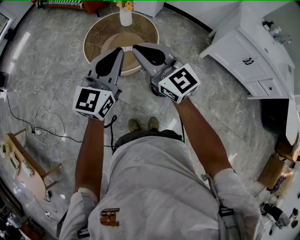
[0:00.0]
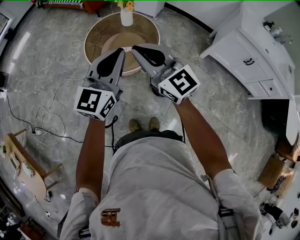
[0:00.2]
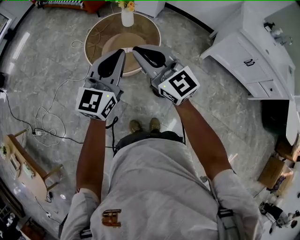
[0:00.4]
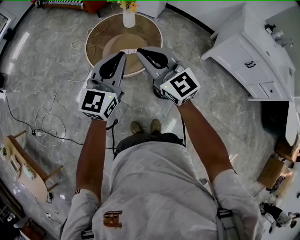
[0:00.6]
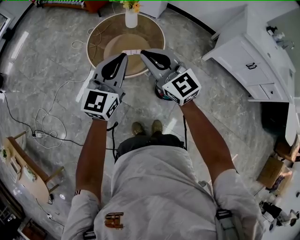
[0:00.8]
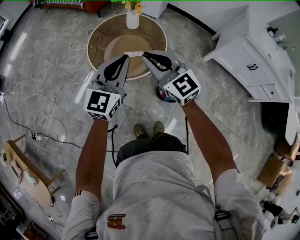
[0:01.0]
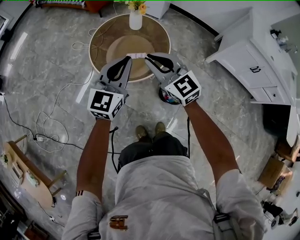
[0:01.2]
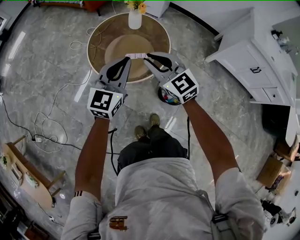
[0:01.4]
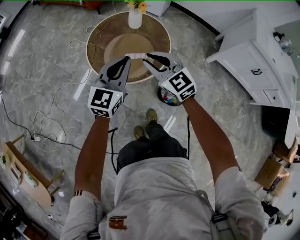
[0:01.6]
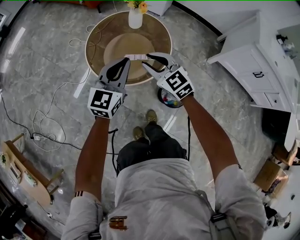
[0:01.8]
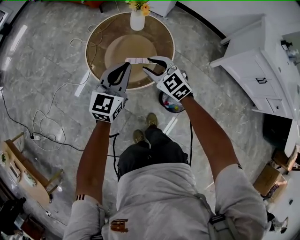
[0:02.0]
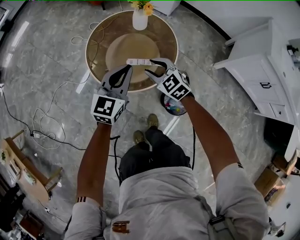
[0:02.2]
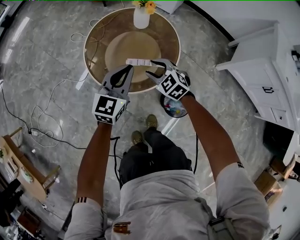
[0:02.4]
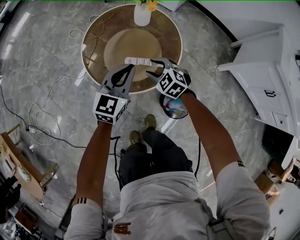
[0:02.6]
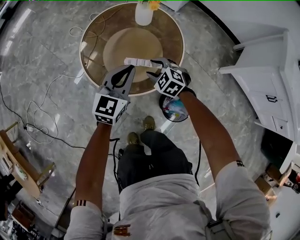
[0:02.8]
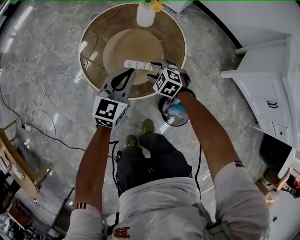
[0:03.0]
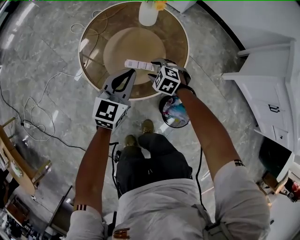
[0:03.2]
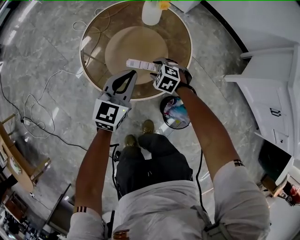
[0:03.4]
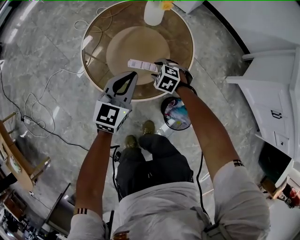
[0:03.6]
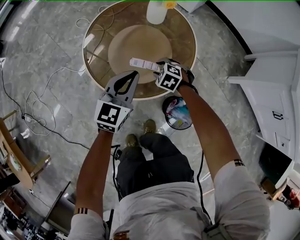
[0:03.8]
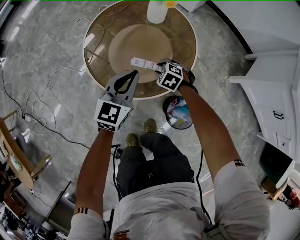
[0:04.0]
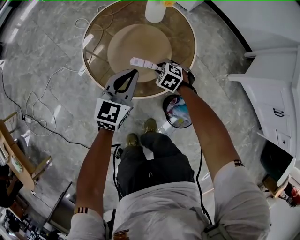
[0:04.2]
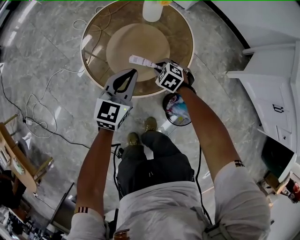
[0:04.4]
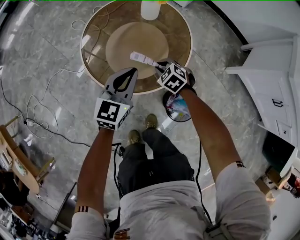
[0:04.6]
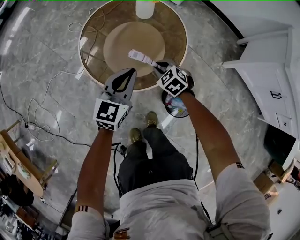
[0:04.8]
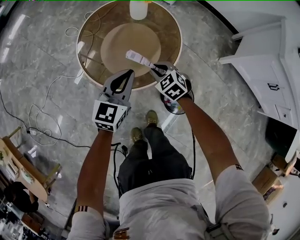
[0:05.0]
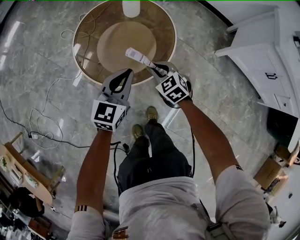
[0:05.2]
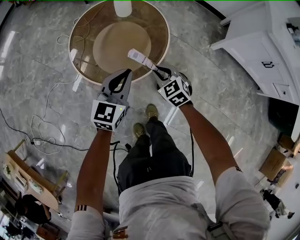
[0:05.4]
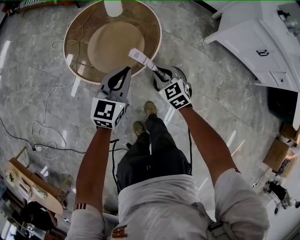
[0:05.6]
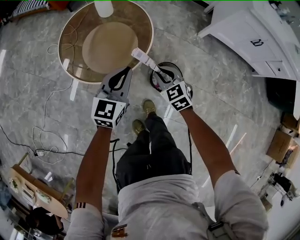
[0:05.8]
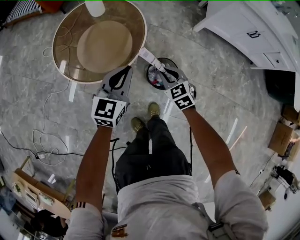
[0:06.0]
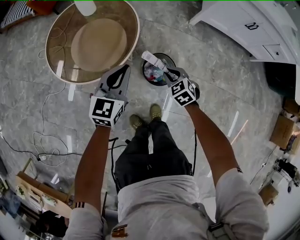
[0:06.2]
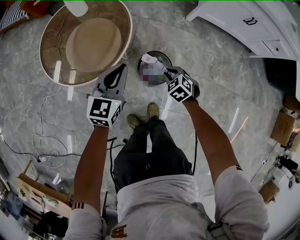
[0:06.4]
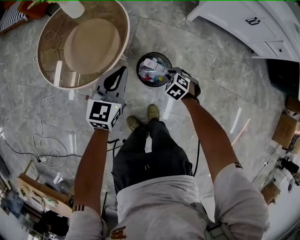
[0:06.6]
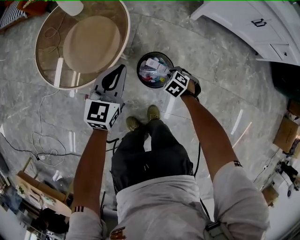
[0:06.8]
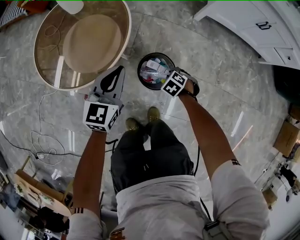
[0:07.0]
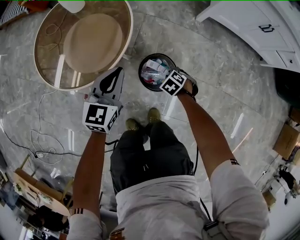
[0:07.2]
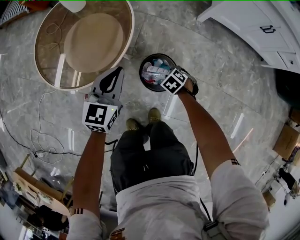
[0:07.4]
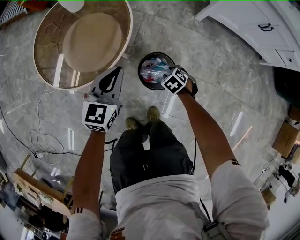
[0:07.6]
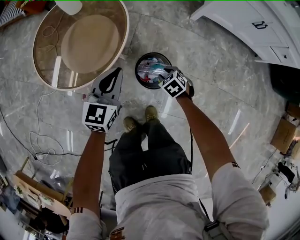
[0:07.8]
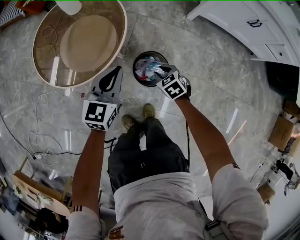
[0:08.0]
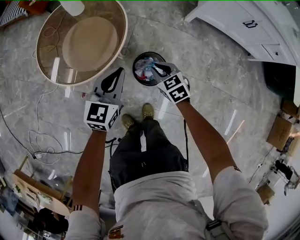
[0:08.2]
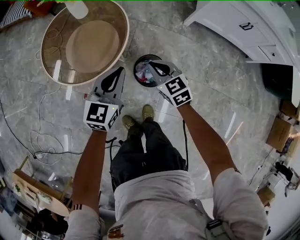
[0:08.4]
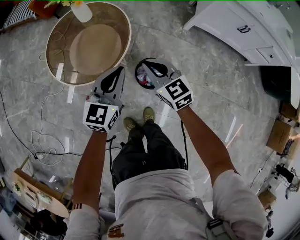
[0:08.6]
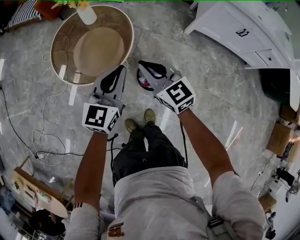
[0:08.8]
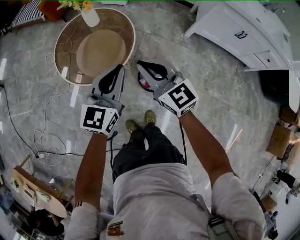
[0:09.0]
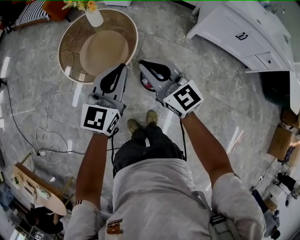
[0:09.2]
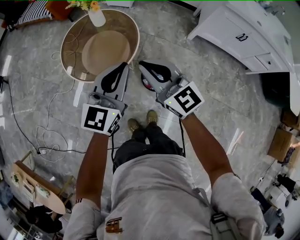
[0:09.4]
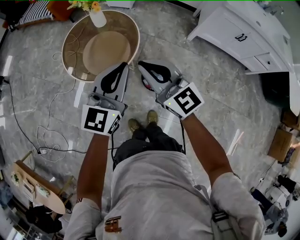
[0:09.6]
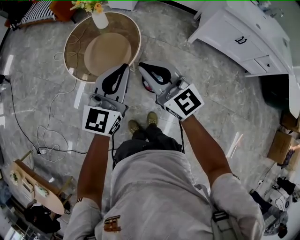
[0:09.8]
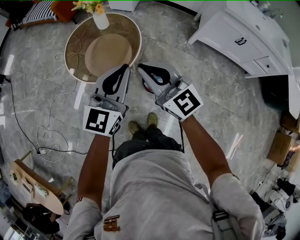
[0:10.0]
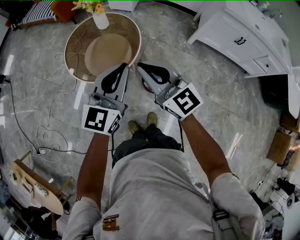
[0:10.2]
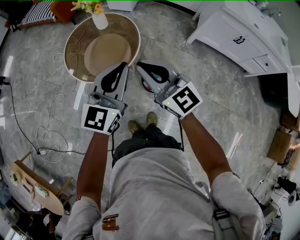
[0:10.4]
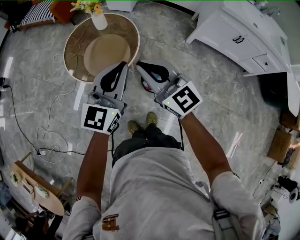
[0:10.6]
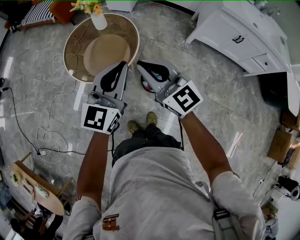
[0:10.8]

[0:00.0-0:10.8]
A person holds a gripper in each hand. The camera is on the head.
0:00.0 to 0:01.6: The two grippers go roughly 20 cm downward and forward. The right gripper changes its angle by about 20 degrees.
0:01.6 to 0:03.0: The right gripper moves downward, approximately 35 cm, tilts its fingers approximately 40 degrees downward, and opens its fingers, while the left gripper goes about 25 cm downward and forward.
0:03.0 to 0:04.6: The right gripper closes its fingers.
0:04.6 to 0:06.2: The right gripper moves some 30 cm, and swivels about 40 degrees; the left gripper ends up approximately 20 cm from where it was, and turns by about 20 degrees.
0:06.2 to 0:07.8: The right gripper goes roughly 15 cm downward; the left gripper heads downward, covering roughly 10 cm.
0:07.8 to 0:09.2: The right gripper is displaced upward by some 50 cm, tilts its fingers roughly 60 degrees upward, and closes up; the left gripper is displaced upward by about 30 cm.
0:09.2 to 0:10.8: Both grippers travel together upward, approximately 5 cm.

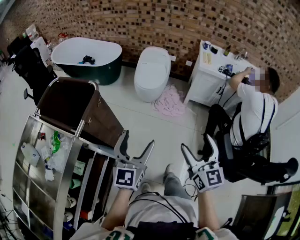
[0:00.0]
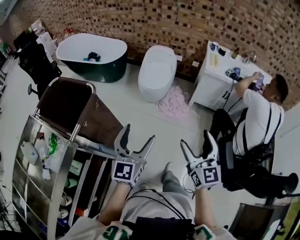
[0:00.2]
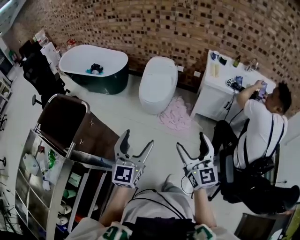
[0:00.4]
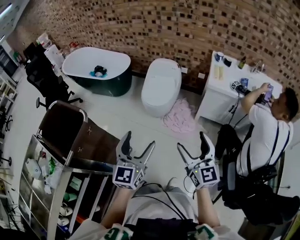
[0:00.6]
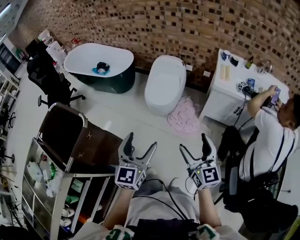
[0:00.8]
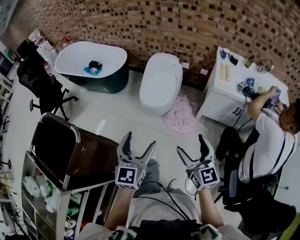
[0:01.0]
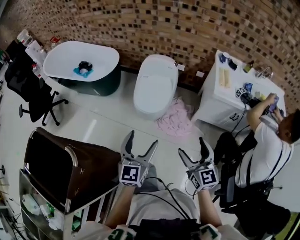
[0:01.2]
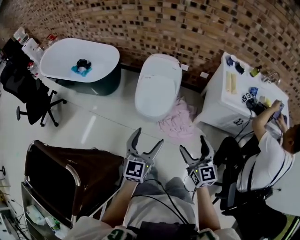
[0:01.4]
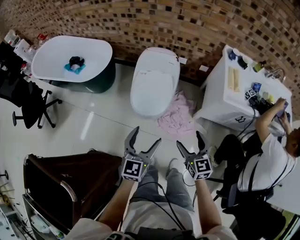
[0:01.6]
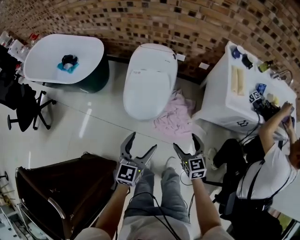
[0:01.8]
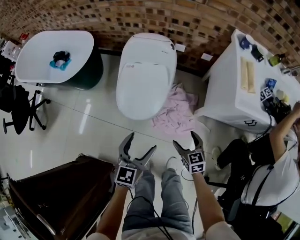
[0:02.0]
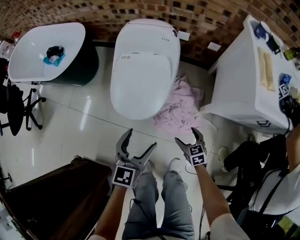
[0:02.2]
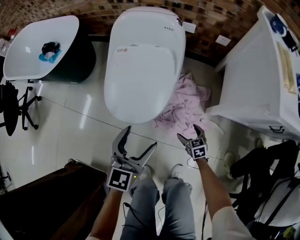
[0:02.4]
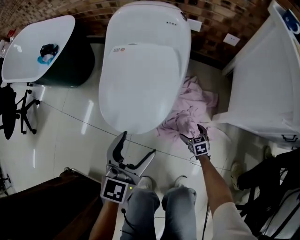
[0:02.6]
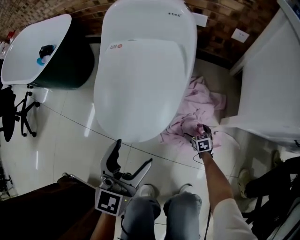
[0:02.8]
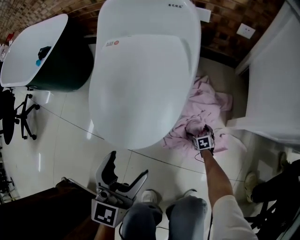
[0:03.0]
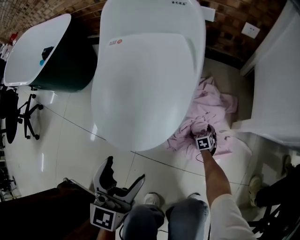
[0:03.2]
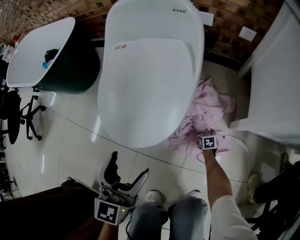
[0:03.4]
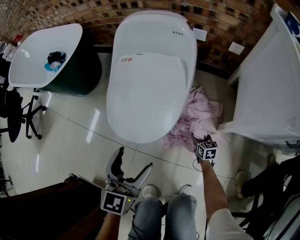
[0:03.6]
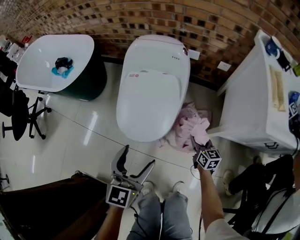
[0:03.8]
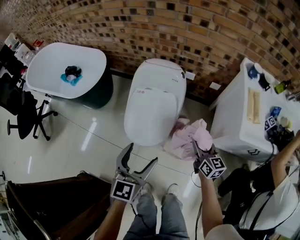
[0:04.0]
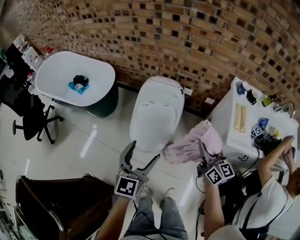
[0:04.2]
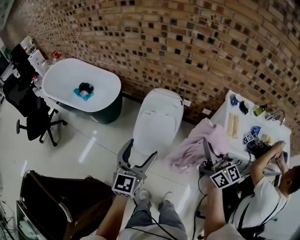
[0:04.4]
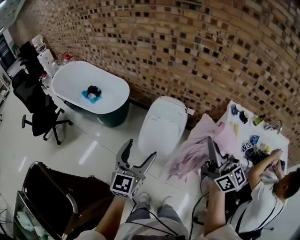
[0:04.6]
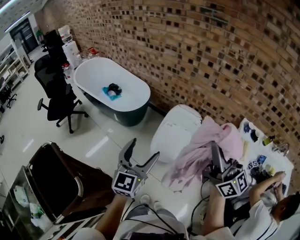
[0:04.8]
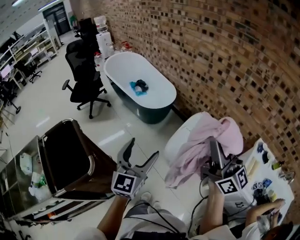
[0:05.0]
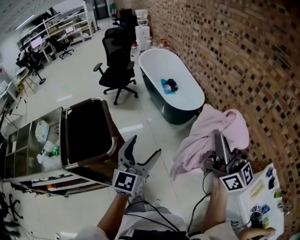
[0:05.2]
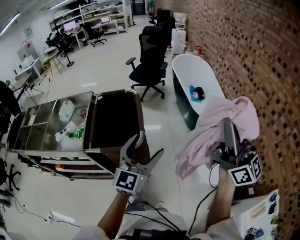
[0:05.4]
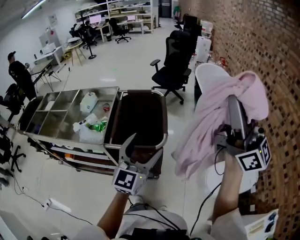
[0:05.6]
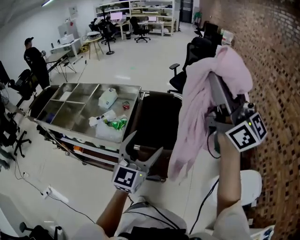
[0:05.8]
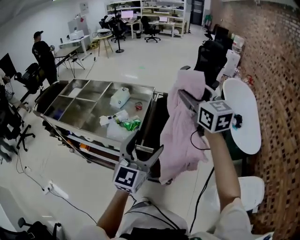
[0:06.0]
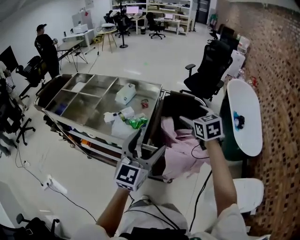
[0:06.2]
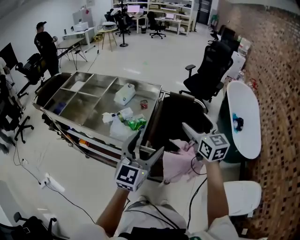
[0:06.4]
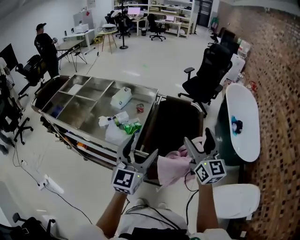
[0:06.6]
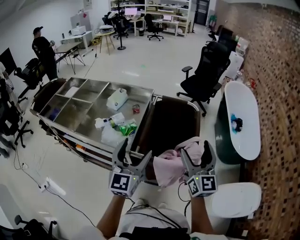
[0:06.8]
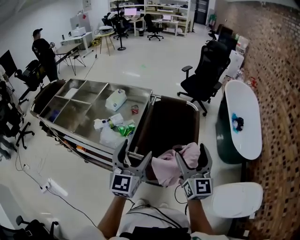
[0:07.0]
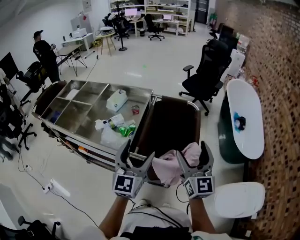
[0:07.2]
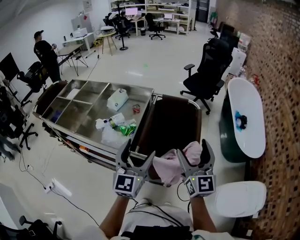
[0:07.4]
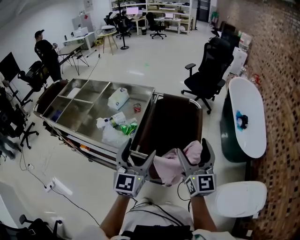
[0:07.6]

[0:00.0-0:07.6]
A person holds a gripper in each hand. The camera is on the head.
0:00.0 to 0:01.6: The two grippers travel together, forward, some 60 cm. The right gripper moves downward, approximately 25 cm.
0:01.6 to 0:03.0: The right gripper heads downward, covering some 90 cm, and tilts its fingers approximately 40 degrees downward, while the left gripper travels downward by approximately 50 cm.
0:03.0 to 0:04.6: The right gripper goes approximately 1.5 m upward, angles its fingers upward, by some 80 degrees, and closes up. Meanwhile the left gripper travels upward by about 60 cm.
0:04.6 to 0:06.0: Both grippers are carried some 70 cm. The left gripper turns by approximately 80 degrees, while the right gripper rotates some 80 degrees.
0:06.0 to 0:07.6: The left gripper travels downward by roughly 5 cm; the right gripper travels downward and backward by some 20 cm.

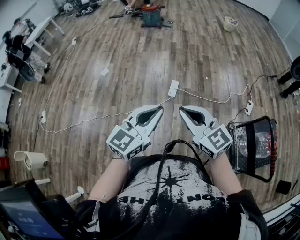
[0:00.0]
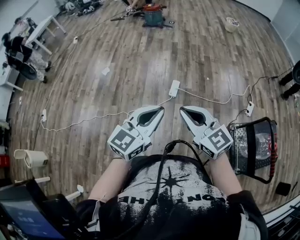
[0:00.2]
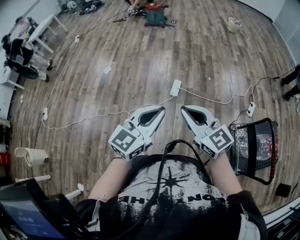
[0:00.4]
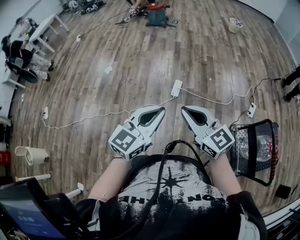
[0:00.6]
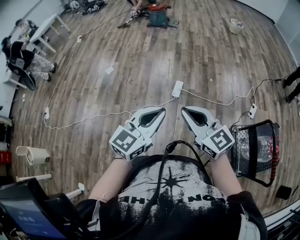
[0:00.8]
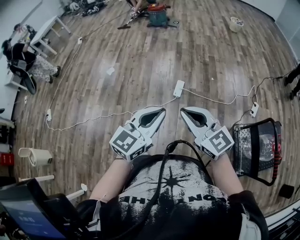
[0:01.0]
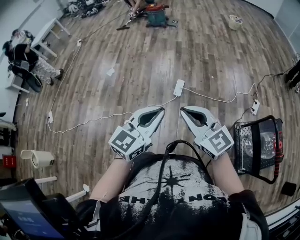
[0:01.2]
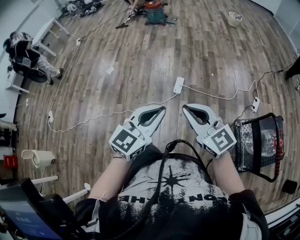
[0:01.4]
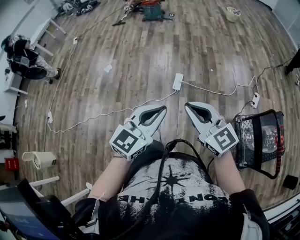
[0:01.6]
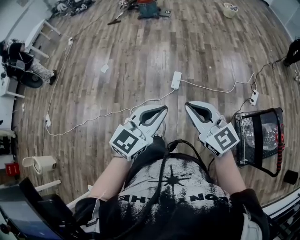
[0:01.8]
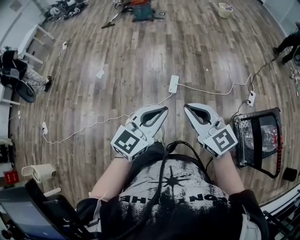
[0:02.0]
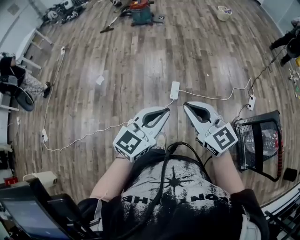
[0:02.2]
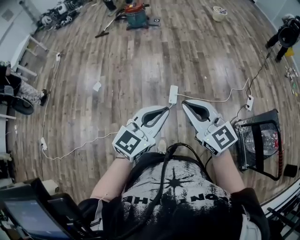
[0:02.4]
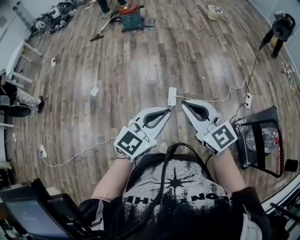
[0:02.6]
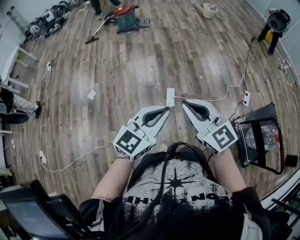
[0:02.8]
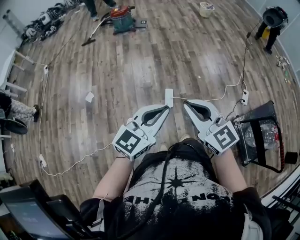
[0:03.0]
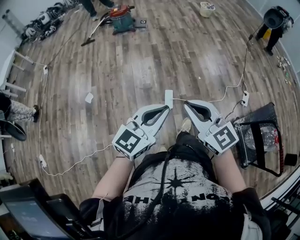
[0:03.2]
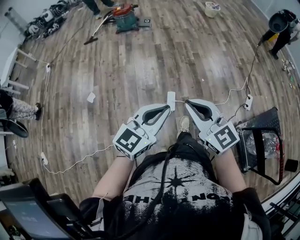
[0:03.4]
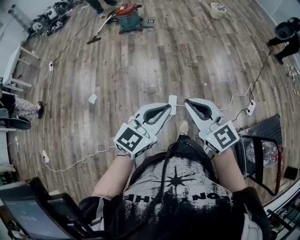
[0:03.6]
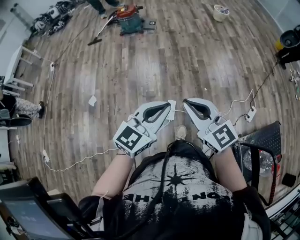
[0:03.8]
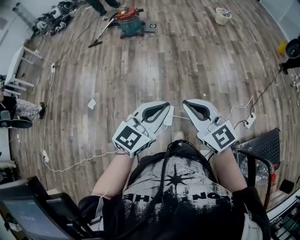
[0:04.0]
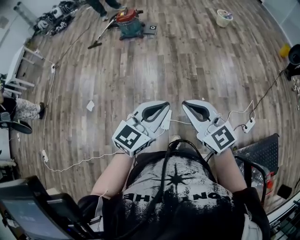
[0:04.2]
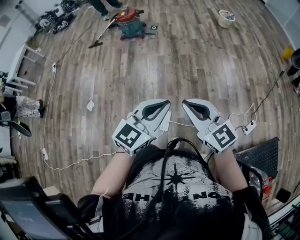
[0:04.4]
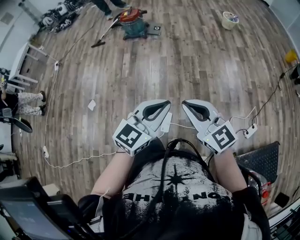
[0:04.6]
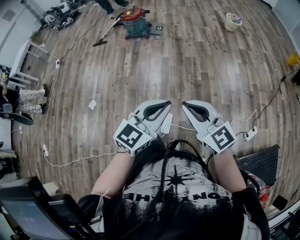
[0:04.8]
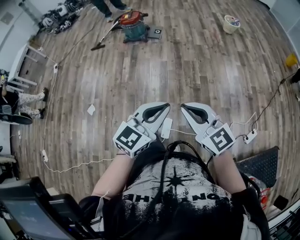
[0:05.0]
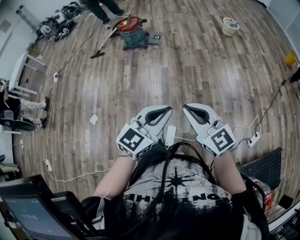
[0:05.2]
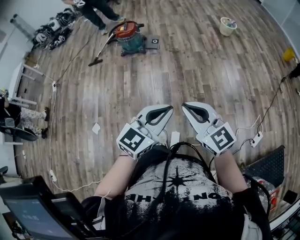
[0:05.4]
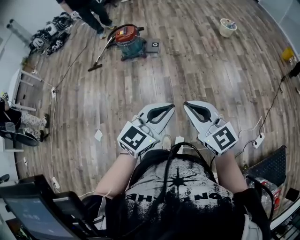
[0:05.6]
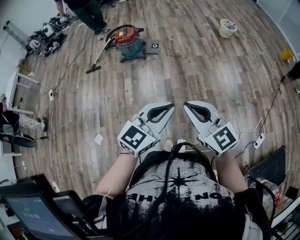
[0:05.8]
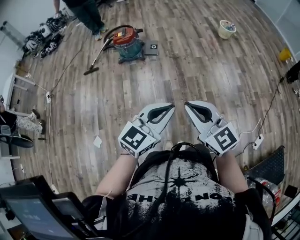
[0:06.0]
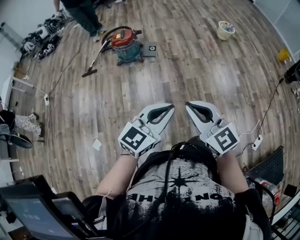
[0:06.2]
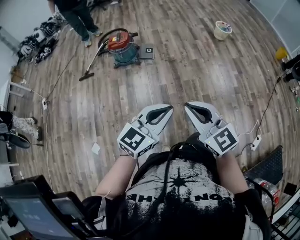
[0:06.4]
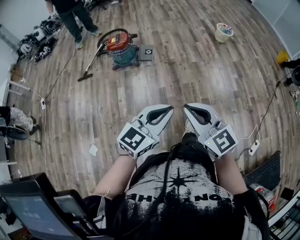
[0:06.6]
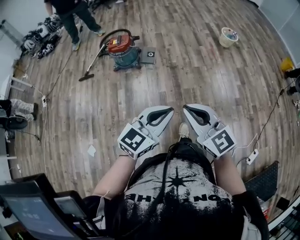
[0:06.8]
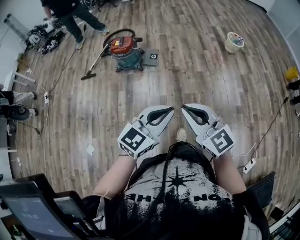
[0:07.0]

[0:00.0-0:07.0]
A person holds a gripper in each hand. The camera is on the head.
0:00.0 to 0:01.4: The grippers make only small movements.
0:01.4 to 0:02.8: Both grippers move forward and to the left, about 25 cm.
0:02.8 to 0:04.2: The two grippers go roughly 35 cm forward and to the right.
0:04.2 to 0:05.6: Both grippers move forward, about 25 cm.
0:05.6 to 0:07.0: The grippers both shift forward by roughly 30 cm.
